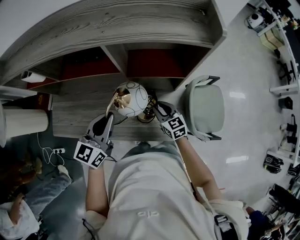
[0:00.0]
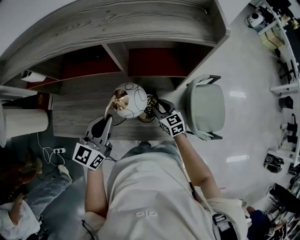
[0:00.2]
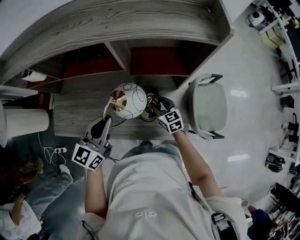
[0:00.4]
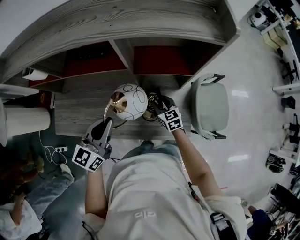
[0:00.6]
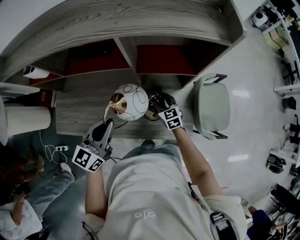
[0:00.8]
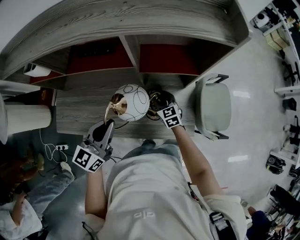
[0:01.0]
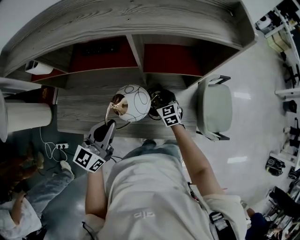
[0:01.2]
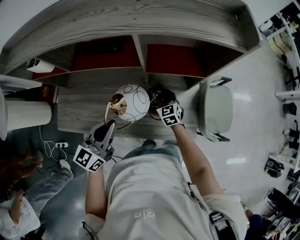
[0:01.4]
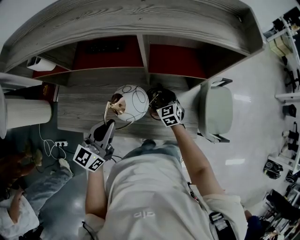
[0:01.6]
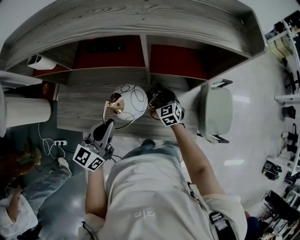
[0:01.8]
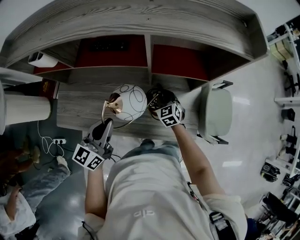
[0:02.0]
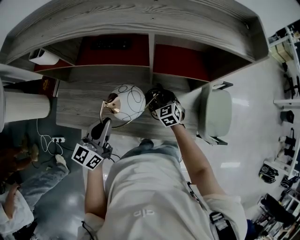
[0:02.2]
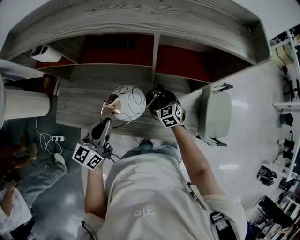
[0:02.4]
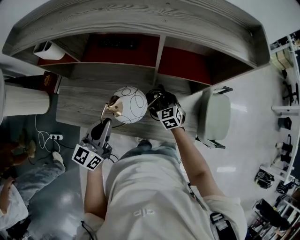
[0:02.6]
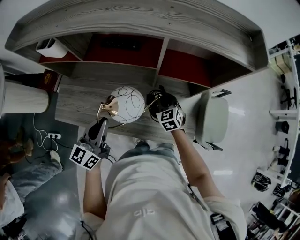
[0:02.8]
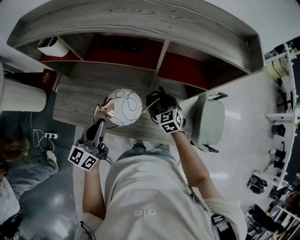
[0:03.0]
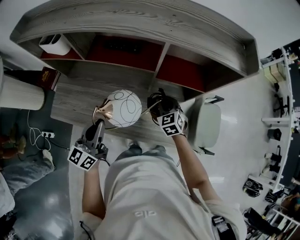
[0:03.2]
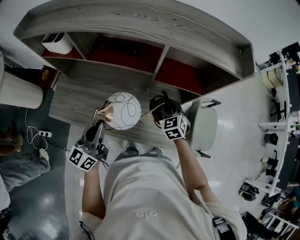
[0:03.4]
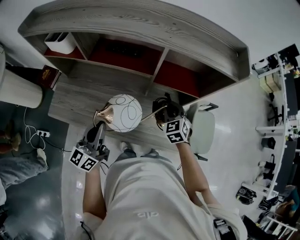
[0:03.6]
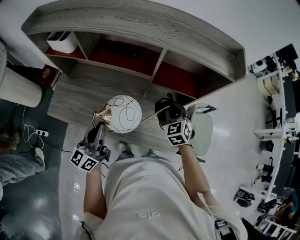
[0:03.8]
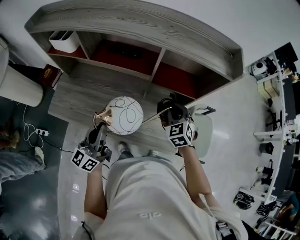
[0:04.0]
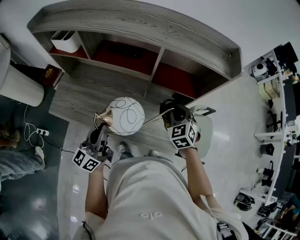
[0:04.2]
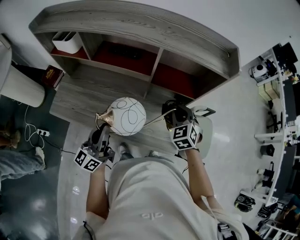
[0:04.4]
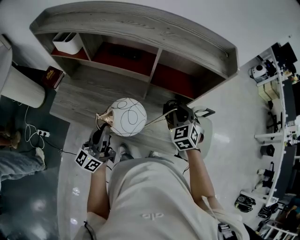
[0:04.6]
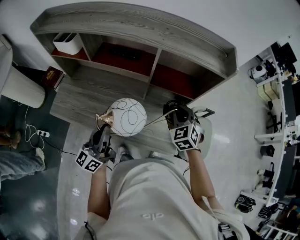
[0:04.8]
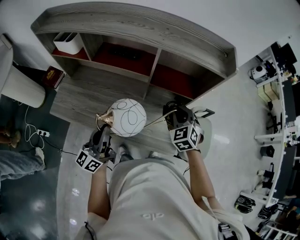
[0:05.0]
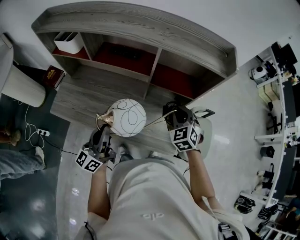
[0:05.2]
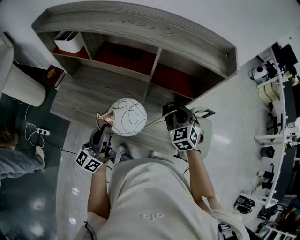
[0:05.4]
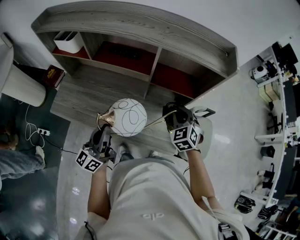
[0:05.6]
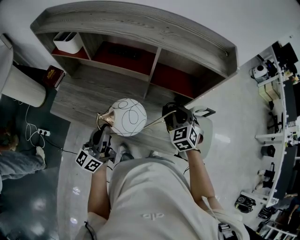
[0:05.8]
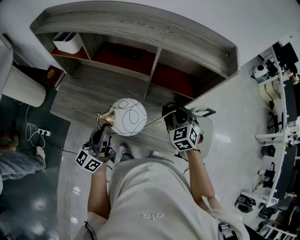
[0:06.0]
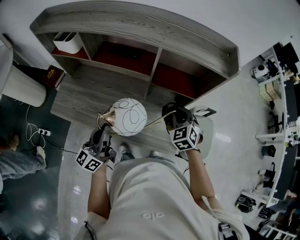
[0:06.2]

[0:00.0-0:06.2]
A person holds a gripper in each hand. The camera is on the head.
0:00.0 to 0:01.6: The left gripper heads to the left, covering about 10 cm; the right gripper goes some 10 cm to the left, forward and downward, and turns by approximately 20 degrees.
0:01.6 to 0:03.2: The left gripper goes about 5 cm to the left; the right gripper shifts about 10 cm upward.
0:03.2 to 0:04.6: The left gripper shifts by roughly 5 cm. The right gripper travels upward and to the right by roughly 15 cm.
0:04.6 to 0:06.2: The grippers stay close to where they were, moving slightly.

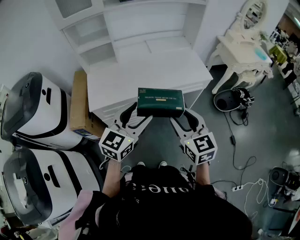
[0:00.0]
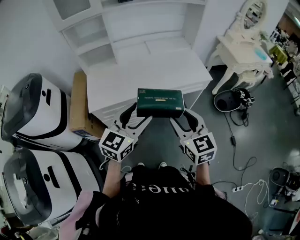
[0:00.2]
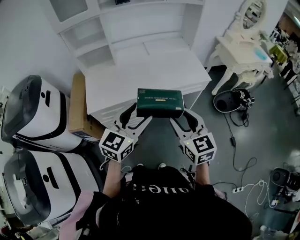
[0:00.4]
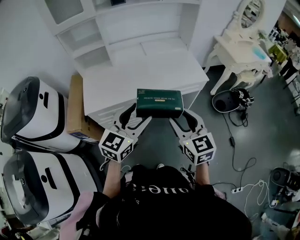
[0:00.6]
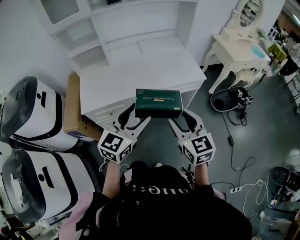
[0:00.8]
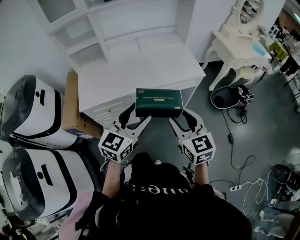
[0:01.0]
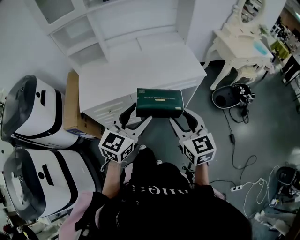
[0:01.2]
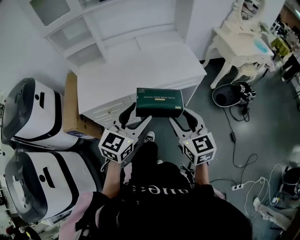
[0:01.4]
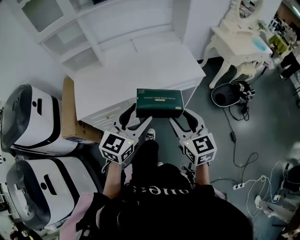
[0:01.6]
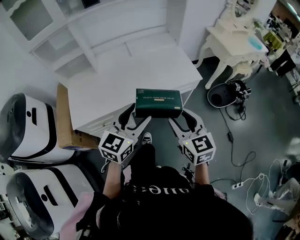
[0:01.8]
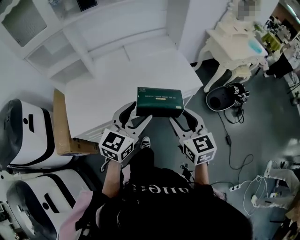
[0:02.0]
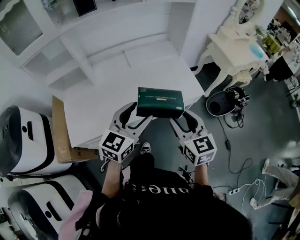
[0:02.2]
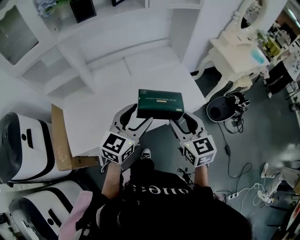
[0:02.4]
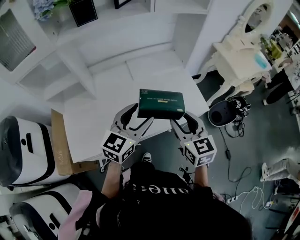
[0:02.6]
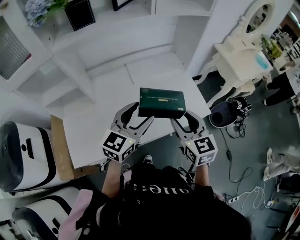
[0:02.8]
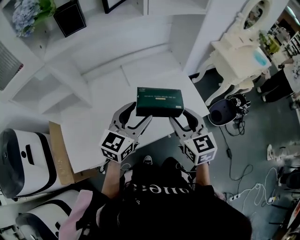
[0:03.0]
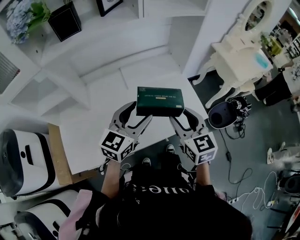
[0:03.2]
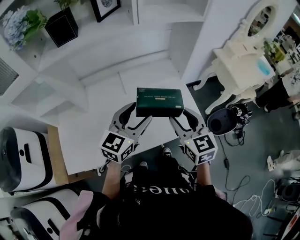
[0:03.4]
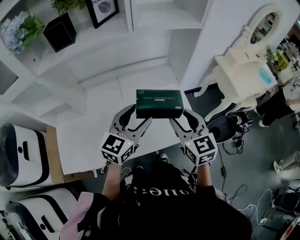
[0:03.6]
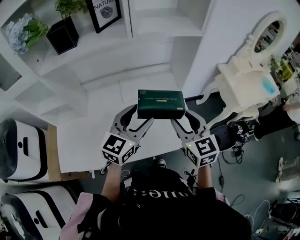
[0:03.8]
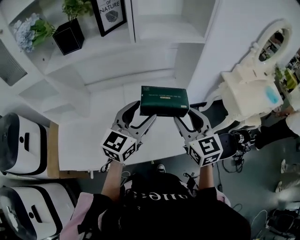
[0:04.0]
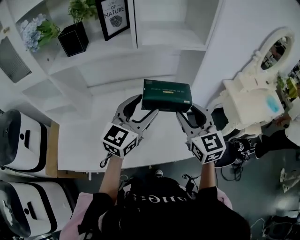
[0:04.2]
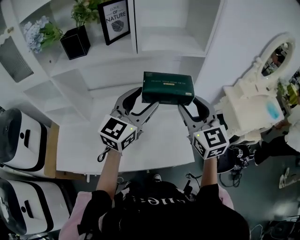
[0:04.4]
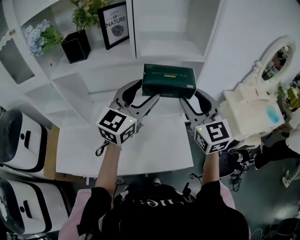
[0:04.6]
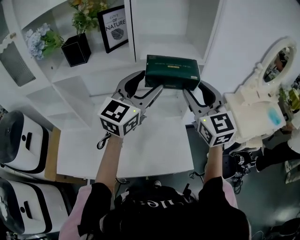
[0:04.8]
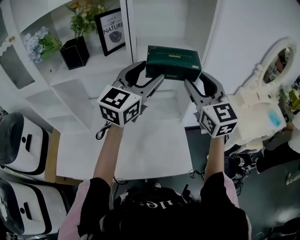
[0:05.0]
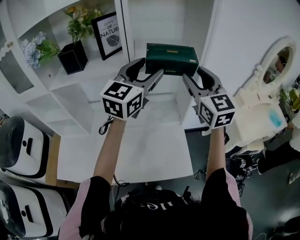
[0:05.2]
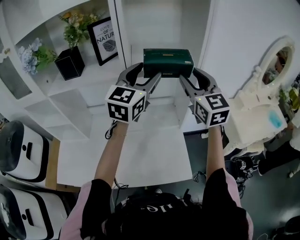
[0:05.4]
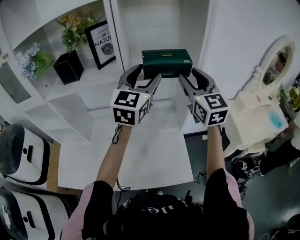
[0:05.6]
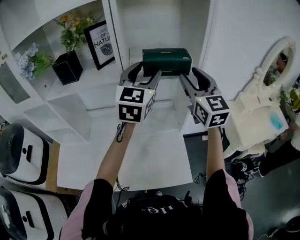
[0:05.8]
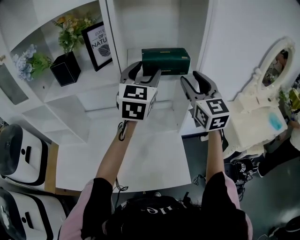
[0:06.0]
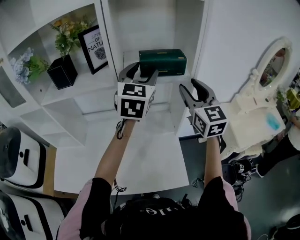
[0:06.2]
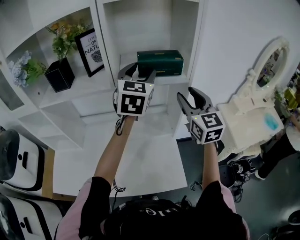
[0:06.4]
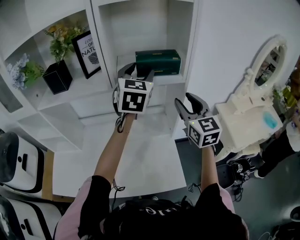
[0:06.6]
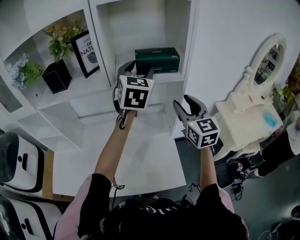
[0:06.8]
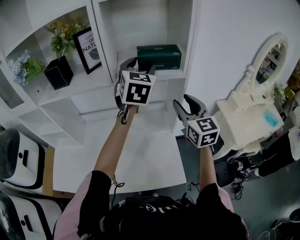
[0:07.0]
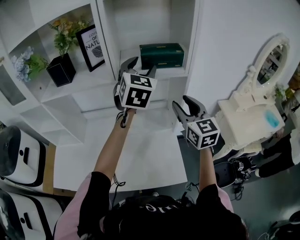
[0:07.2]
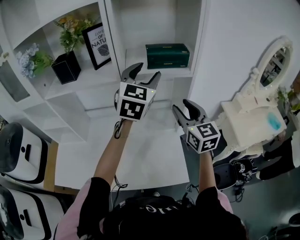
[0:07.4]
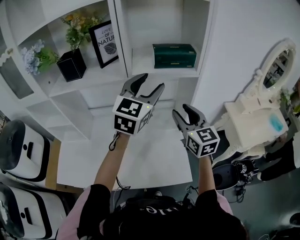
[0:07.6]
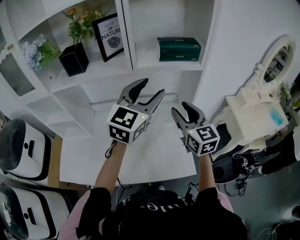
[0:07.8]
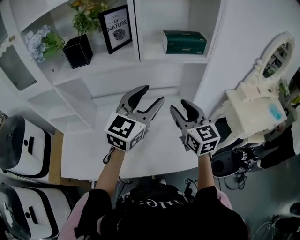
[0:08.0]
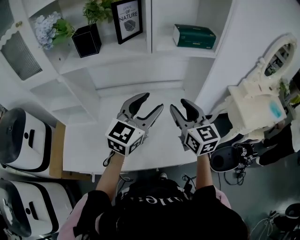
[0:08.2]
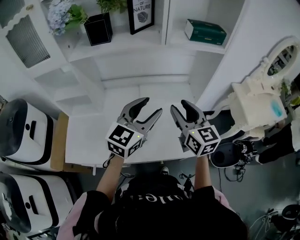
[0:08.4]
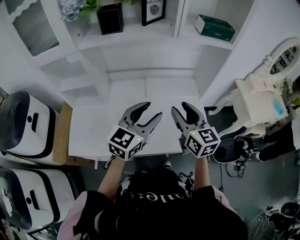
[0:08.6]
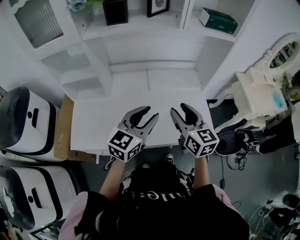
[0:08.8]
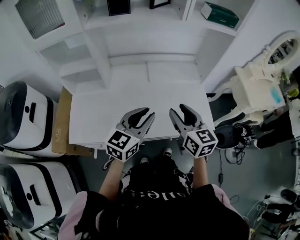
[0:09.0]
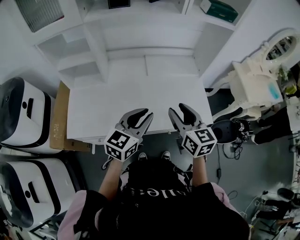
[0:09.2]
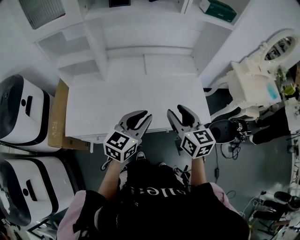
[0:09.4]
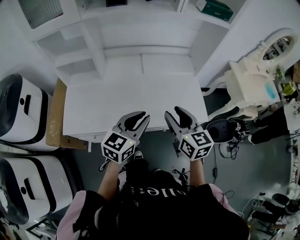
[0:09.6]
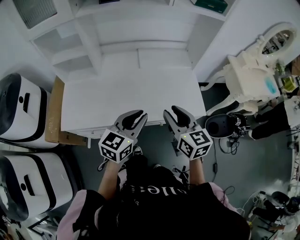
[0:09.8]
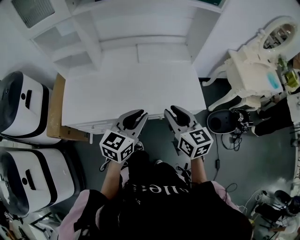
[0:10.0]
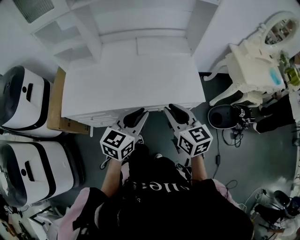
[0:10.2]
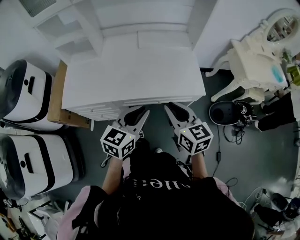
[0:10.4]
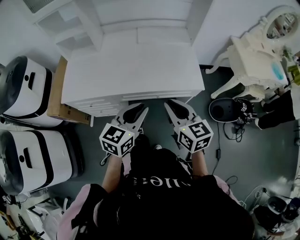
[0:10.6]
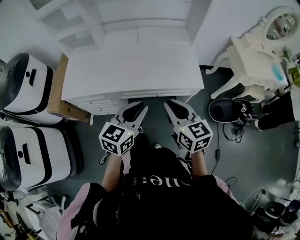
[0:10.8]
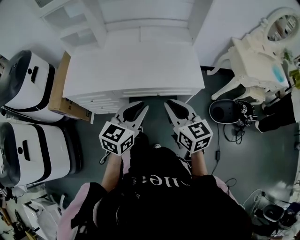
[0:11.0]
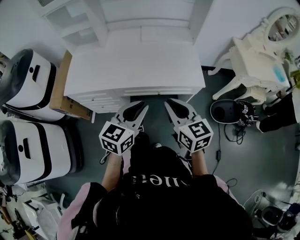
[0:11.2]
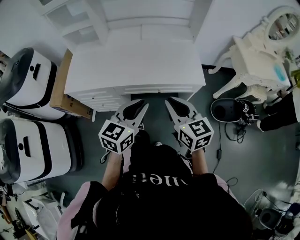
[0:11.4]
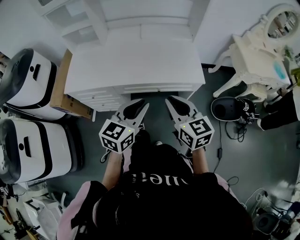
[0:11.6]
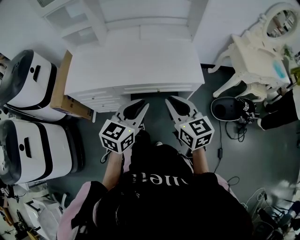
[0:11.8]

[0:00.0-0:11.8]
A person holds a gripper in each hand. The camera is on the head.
0:00.0 to 0:01.4: Both grippers travel together to the right, about 10 cm.
0:01.4 to 0:03.0: Both grippers travel together forward, roughly 35 cm.
0:03.0 to 0:04.4: The grippers both shift forward, upward and to the right by about 25 cm. The right gripper swivels roughly 20 degrees. The left gripper changes its angle by about 20 degrees.
0:04.4 to 0:06.0: Both grippers move forward and upward, about 20 cm. The left gripper turns by approximately 20 degrees.
0:06.0 to 0:07.4: The right gripper goes approximately 10 cm downward and backward.
0:07.4 to 0:08.8: The left gripper shifts some 40 cm backward, to the left and downward, swivels roughly 30 degrees, and closes up. The right gripper is displaced to the left, backward and downward by approximately 35 cm.
0:08.8 to 0:10.4: The right gripper shifts some 20 cm backward, and closes up, while the left gripper moves backward, to the right and downward, approximately 25 cm.
0:10.4 to 0:11.8: The grippers both shift backward by some 10 cm.

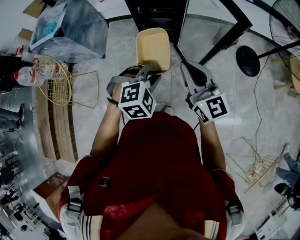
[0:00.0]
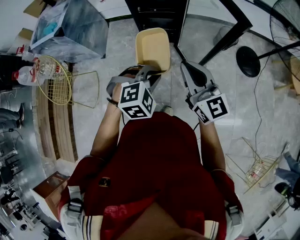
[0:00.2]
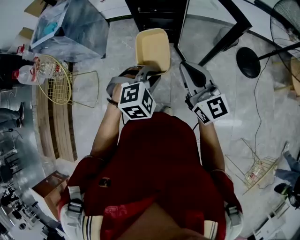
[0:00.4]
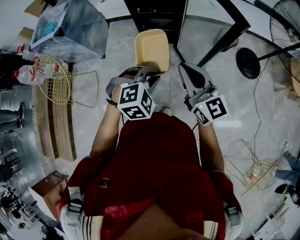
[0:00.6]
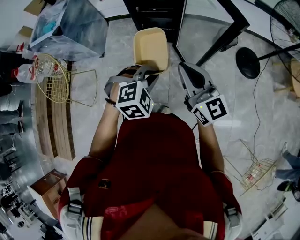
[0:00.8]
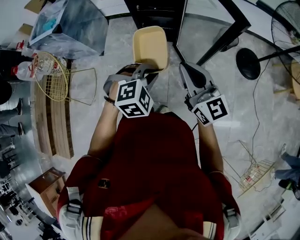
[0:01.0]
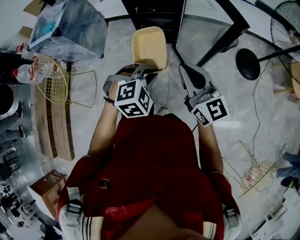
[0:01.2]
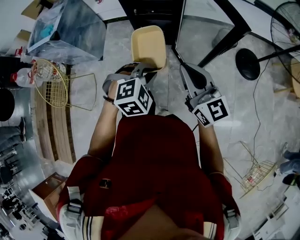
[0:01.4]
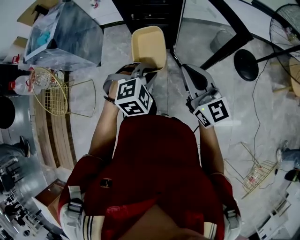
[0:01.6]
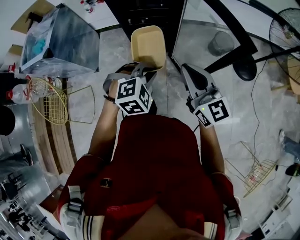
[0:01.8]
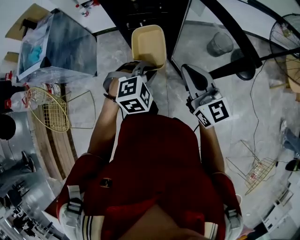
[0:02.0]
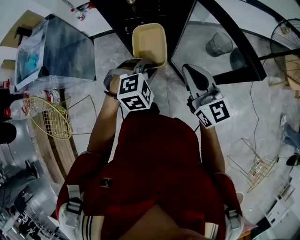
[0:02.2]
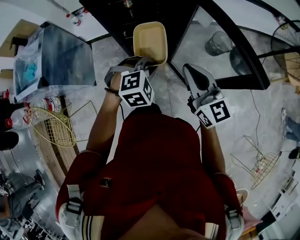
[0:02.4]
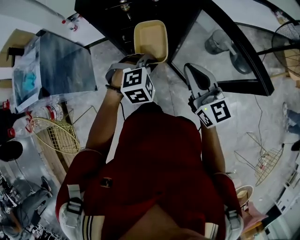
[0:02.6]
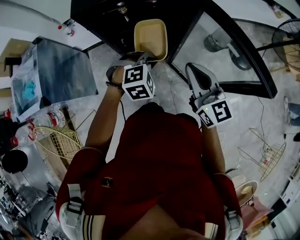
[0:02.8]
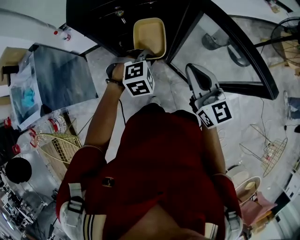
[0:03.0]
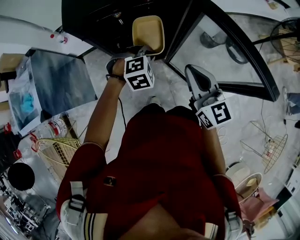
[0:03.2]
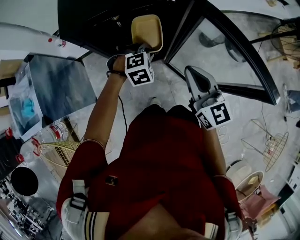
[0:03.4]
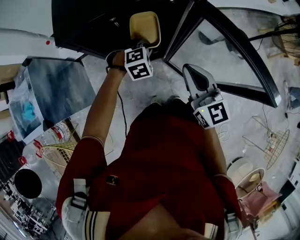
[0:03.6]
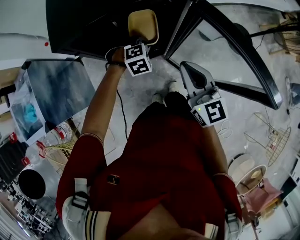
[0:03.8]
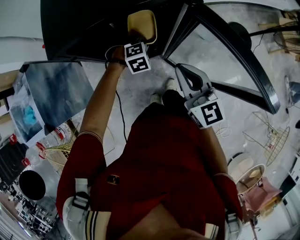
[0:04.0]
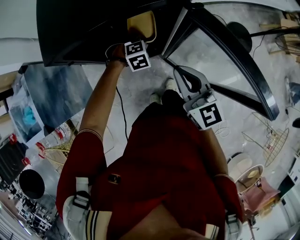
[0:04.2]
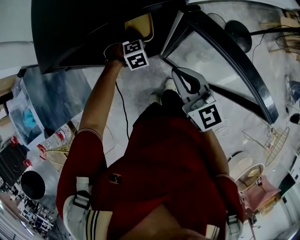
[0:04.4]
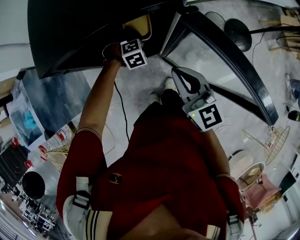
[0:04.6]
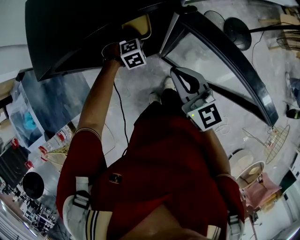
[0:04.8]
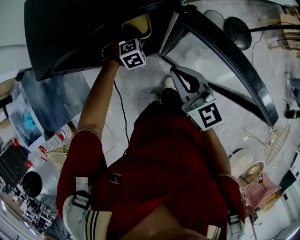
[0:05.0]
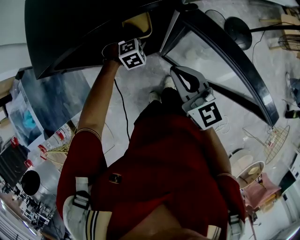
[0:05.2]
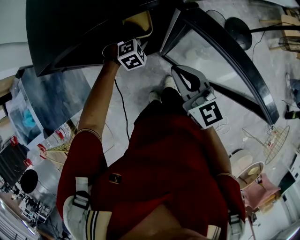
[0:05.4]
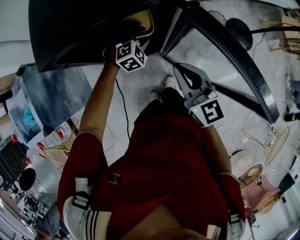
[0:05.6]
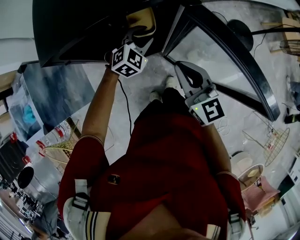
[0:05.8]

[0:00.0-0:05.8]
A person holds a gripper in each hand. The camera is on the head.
0:00.0 to 0:01.4: The left gripper is displaced forward by about 5 cm.
0:01.4 to 0:02.8: The grippers both shift forward by roughly 30 cm. The right gripper swivels roughly 20 degrees.
0:02.8 to 0:04.4: The left gripper is displaced forward and downward by some 25 cm, while the right gripper is displaced forward by roughly 10 cm.
0:04.4 to 0:05.8: The left gripper heads upward, covering approximately 10 cm, swivels roughly 30 degrees, and opens its fingers.
